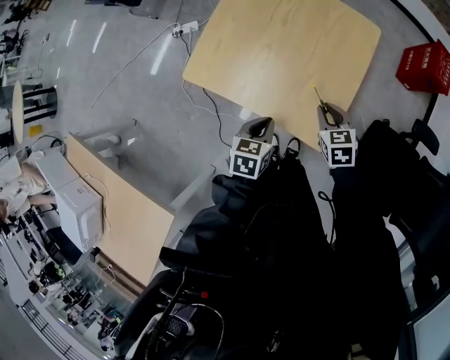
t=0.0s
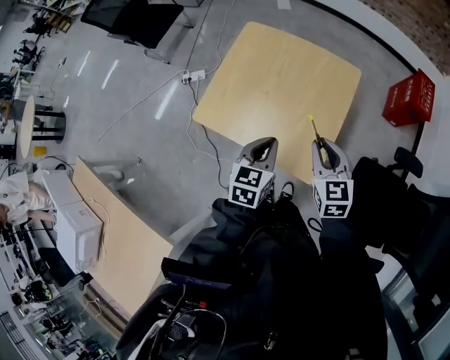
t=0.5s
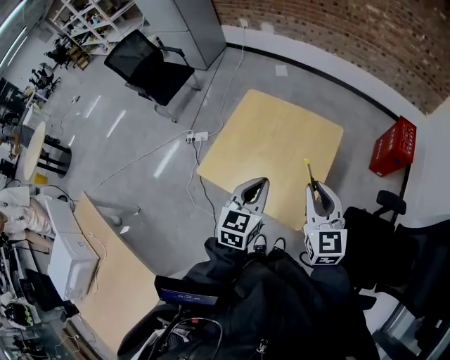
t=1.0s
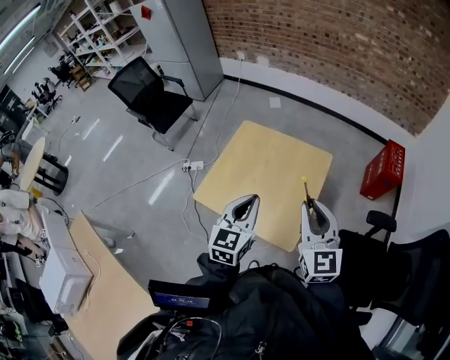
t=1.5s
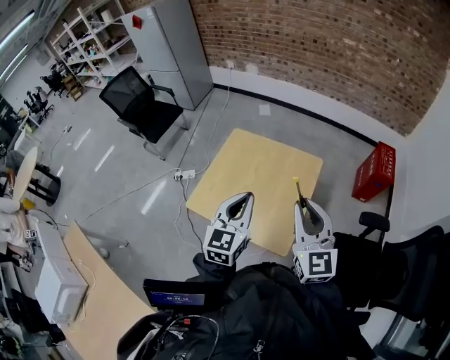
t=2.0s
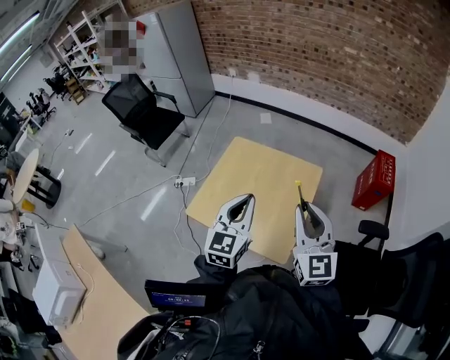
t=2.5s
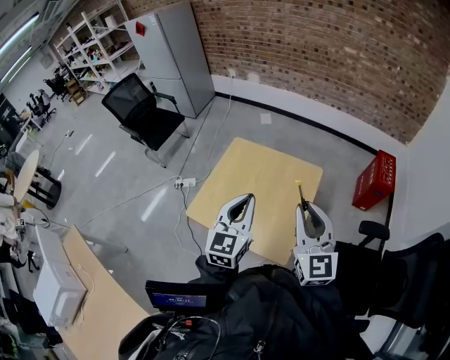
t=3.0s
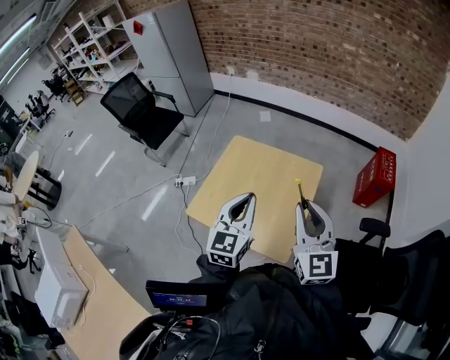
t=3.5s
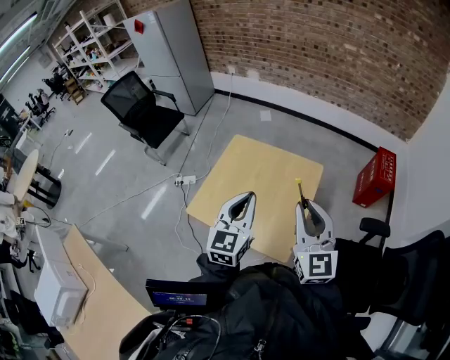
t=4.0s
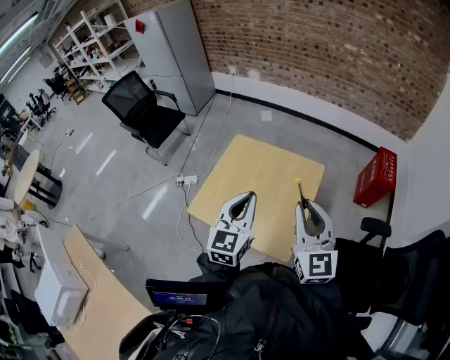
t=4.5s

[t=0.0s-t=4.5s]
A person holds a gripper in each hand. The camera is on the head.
t=0.0s to t=2.0s: The two grippers go some 35 cm upward. The left gripper tips its fingers upward by roughly 40 degrees, while the right gripper points its fingers roughly 50 degrees further upward.
t=2.0s to t=4.5s: There are only small adjustments of the grippers.

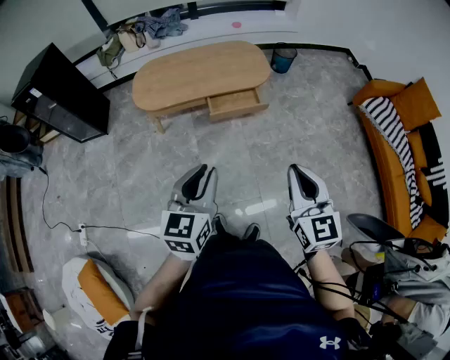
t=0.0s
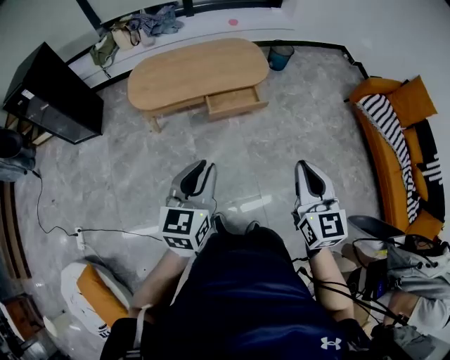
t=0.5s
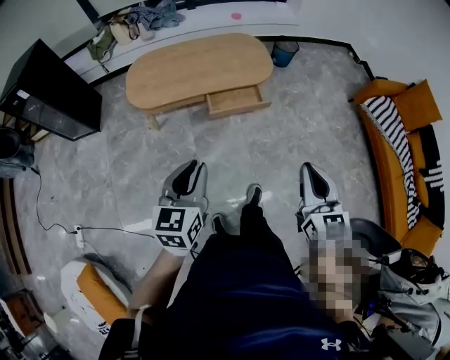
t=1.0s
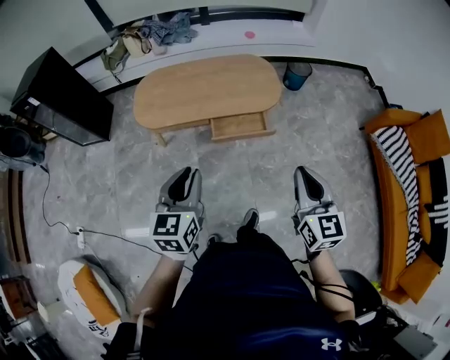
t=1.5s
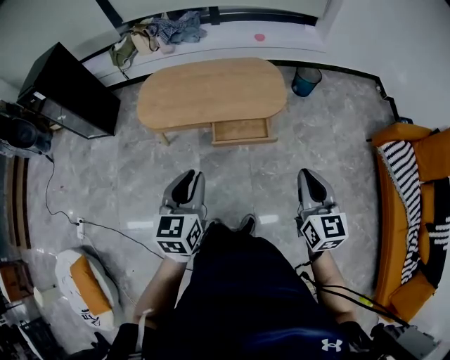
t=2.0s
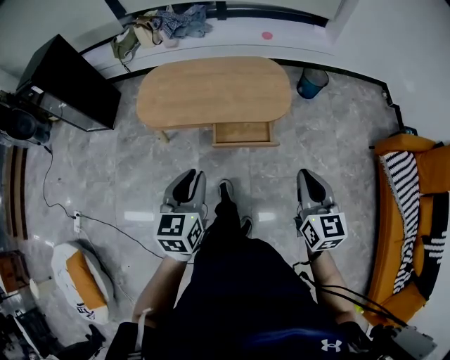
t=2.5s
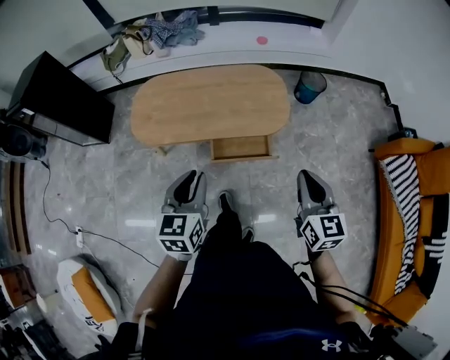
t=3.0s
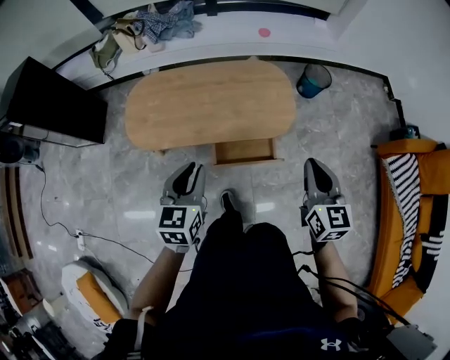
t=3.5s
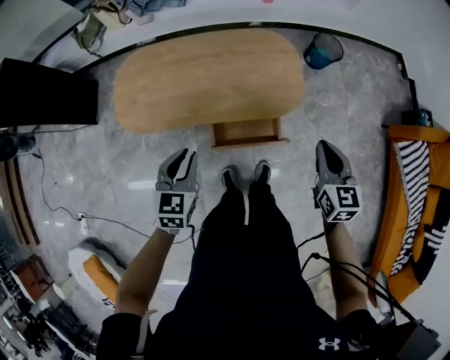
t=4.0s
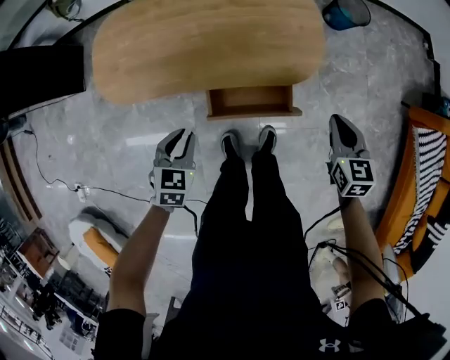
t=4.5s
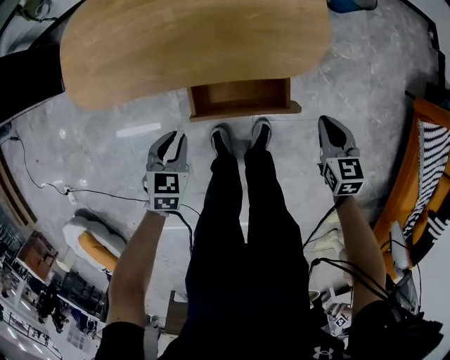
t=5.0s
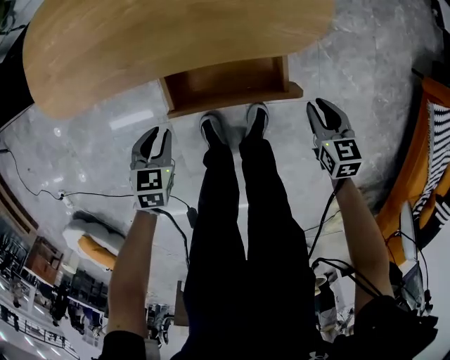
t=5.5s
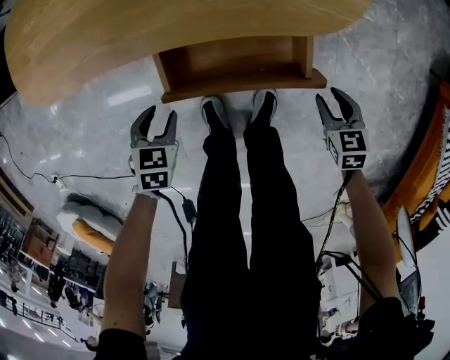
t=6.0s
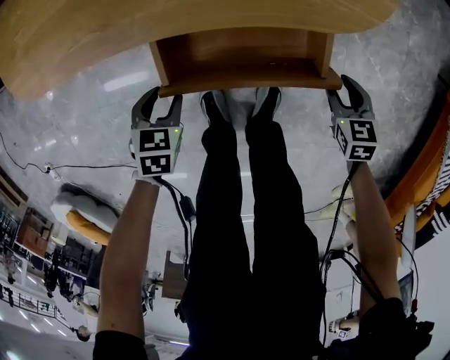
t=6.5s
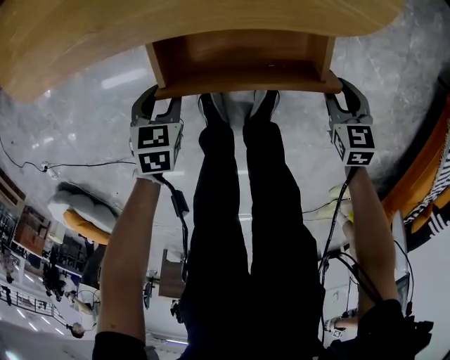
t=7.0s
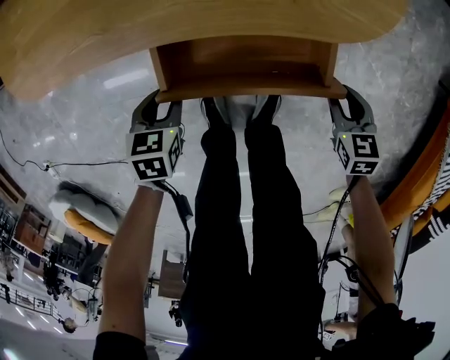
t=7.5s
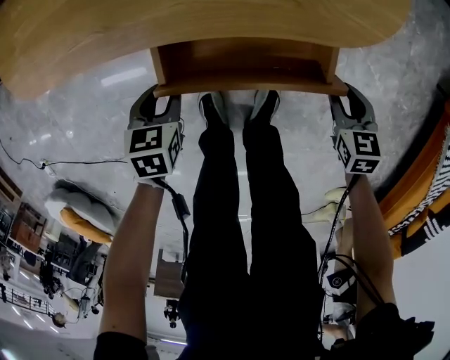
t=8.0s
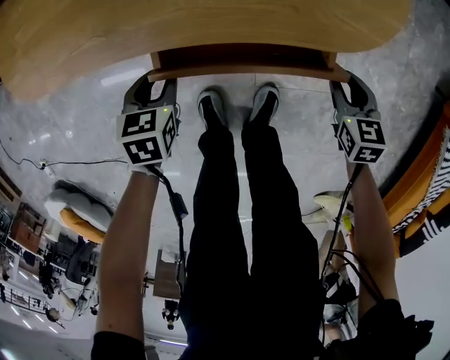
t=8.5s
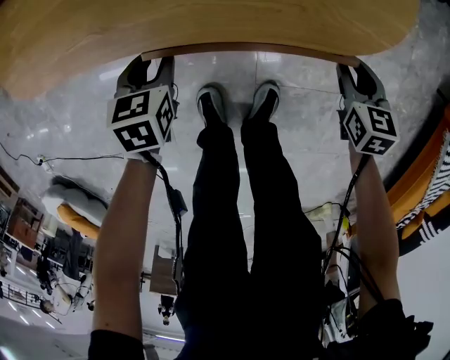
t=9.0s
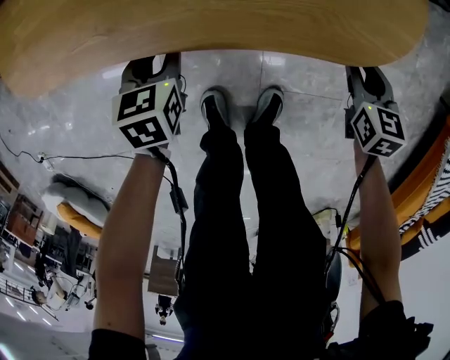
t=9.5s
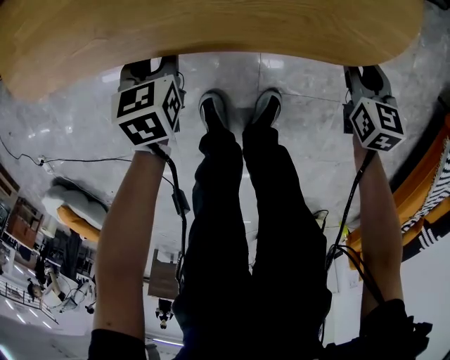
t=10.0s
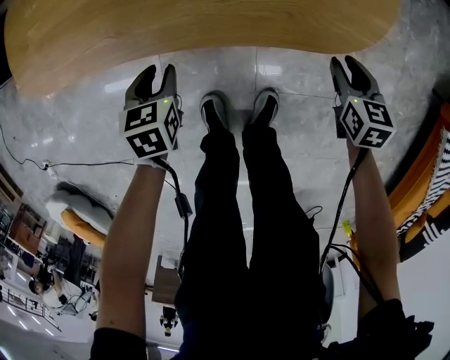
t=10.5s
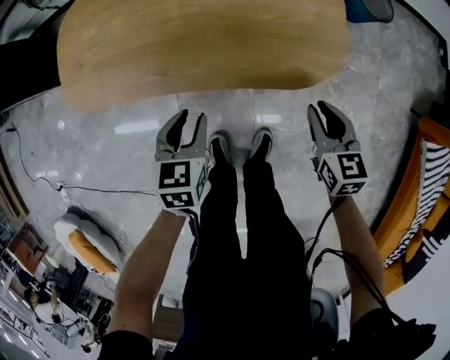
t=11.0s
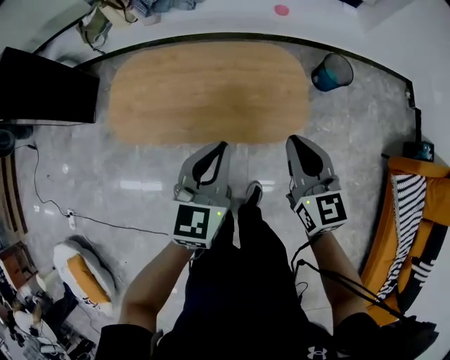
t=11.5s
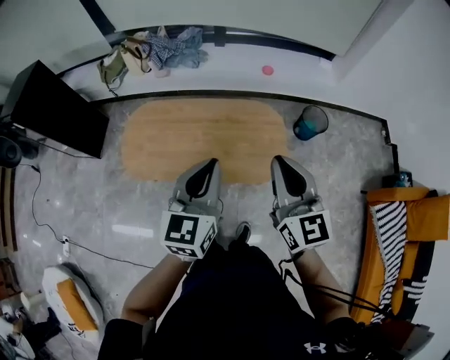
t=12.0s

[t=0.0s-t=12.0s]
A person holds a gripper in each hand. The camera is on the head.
t=0.0s to t=2.0s: Both grippers move forward, some 25 cm.
t=2.0s to t=4.0s: The two grippers go some 35 cm forward and downward.
t=4.0s to t=6.0s: Both grippers move downward, roughly 50 cm. The right gripper tilts its fingers about 30 degrees downward, and opens its fingers, while the left gripper angles its fingers downward, by approximately 30 degrees, and opens up.
t=6.0s to t=8.0s: There are only small adjustments of the grippers.
t=8.0s to t=10.0s: The grippers both shift forward by approximately 10 cm.
t=10.0s to t=12.0s: The two grippers go approximately 70 cm upward. The left gripper angles its fingers upward, by about 50 degrees, and closes, while the right gripper tilts its fingers approximately 50 degrees upward, and closes up.

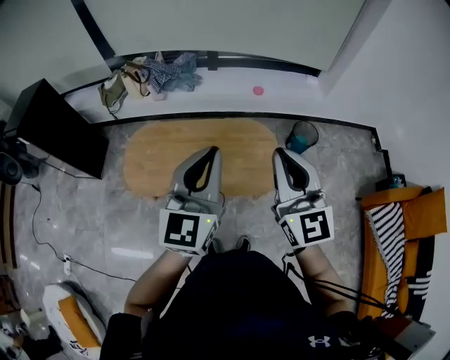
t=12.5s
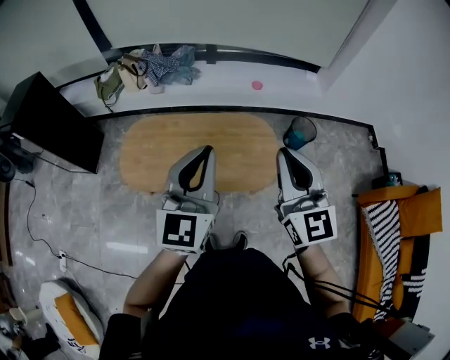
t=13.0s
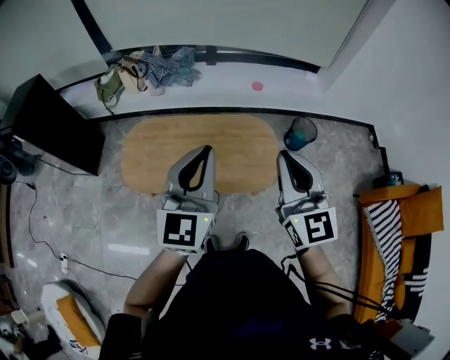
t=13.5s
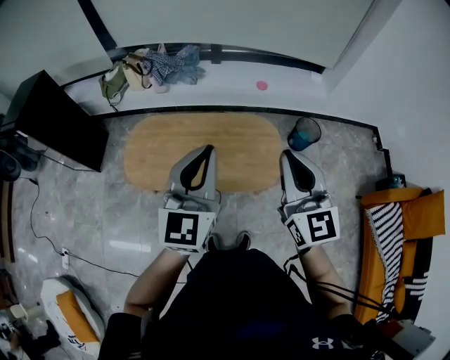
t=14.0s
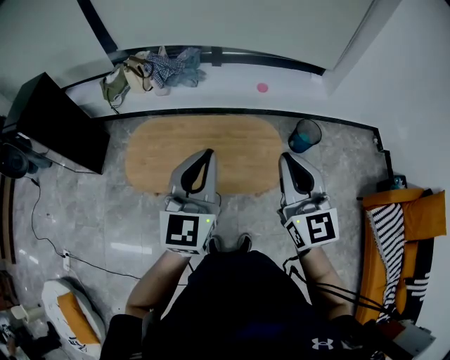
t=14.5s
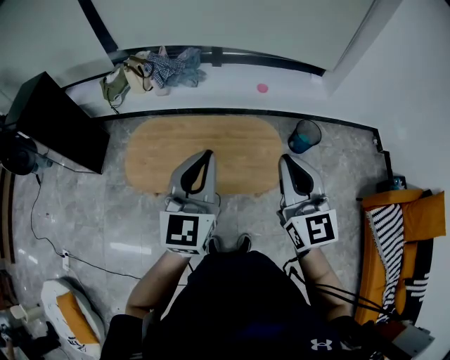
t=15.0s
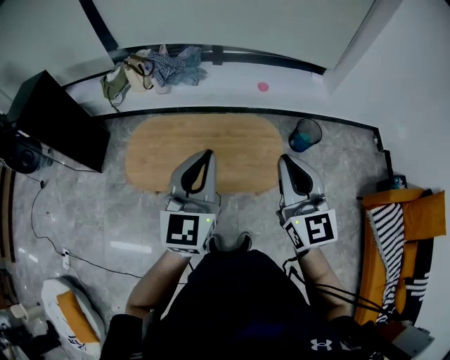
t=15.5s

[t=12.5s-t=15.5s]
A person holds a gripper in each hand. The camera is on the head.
t=12.5s to t=15.5s: The grippers move only a little.

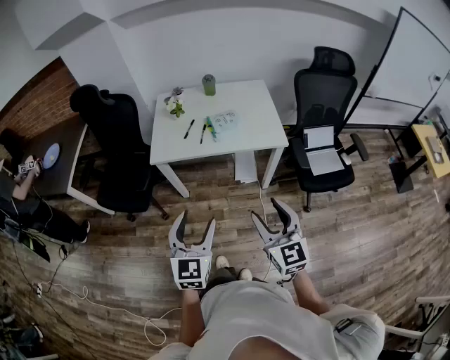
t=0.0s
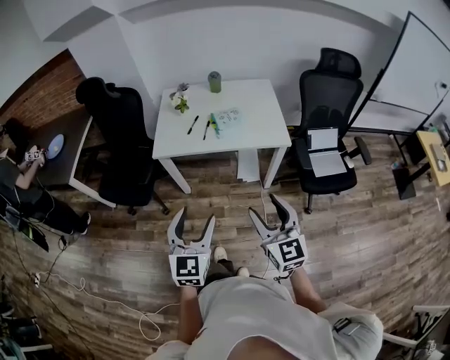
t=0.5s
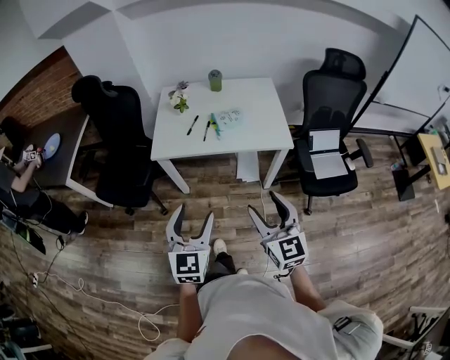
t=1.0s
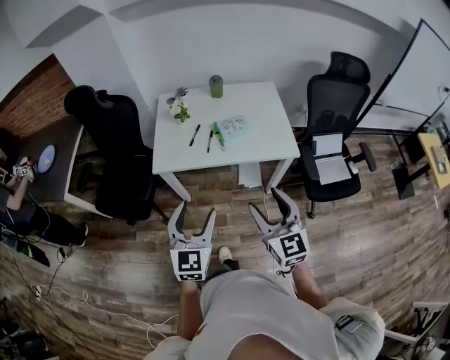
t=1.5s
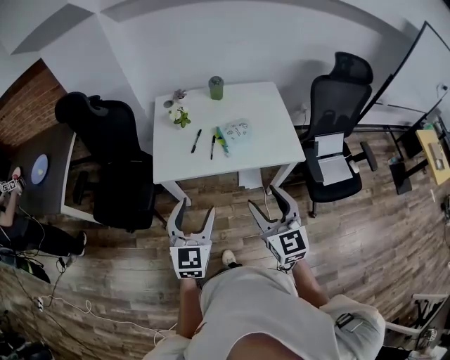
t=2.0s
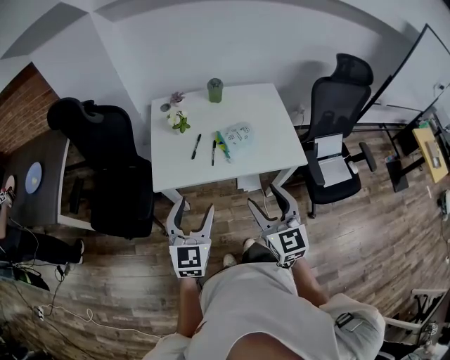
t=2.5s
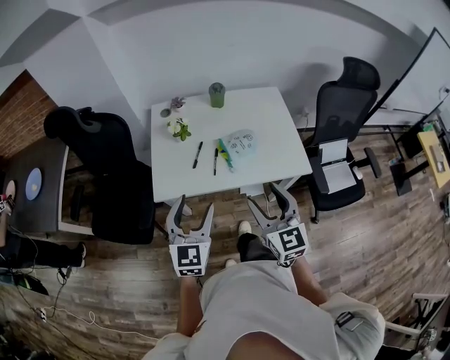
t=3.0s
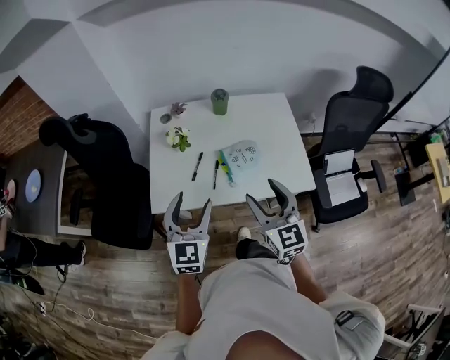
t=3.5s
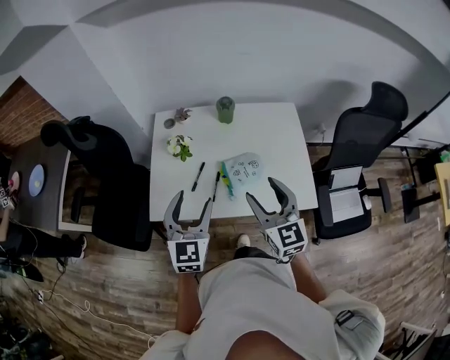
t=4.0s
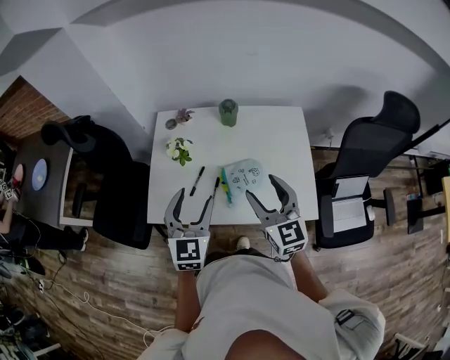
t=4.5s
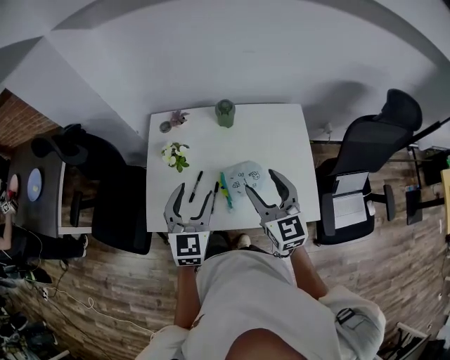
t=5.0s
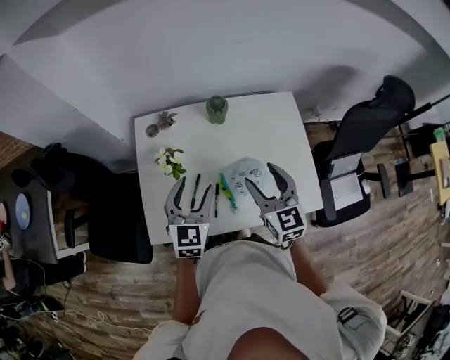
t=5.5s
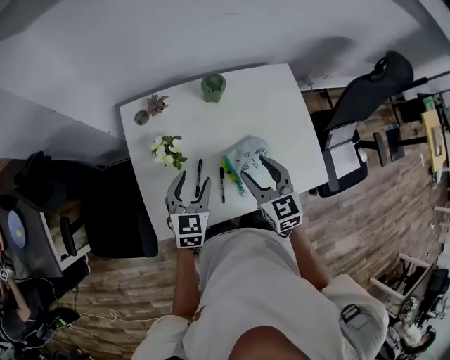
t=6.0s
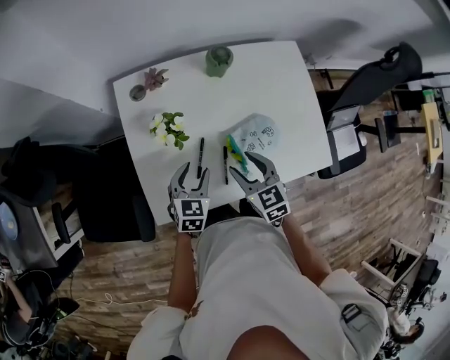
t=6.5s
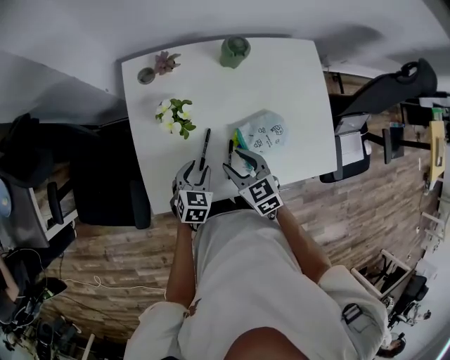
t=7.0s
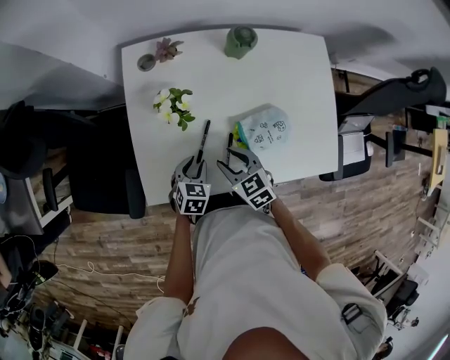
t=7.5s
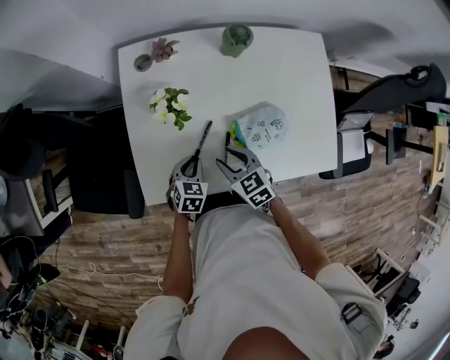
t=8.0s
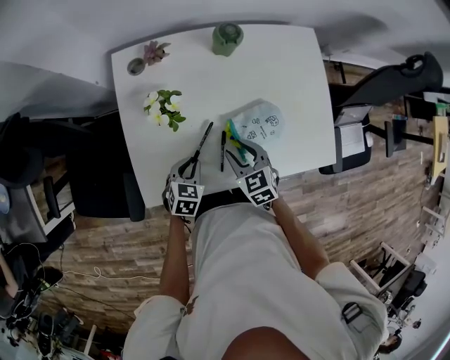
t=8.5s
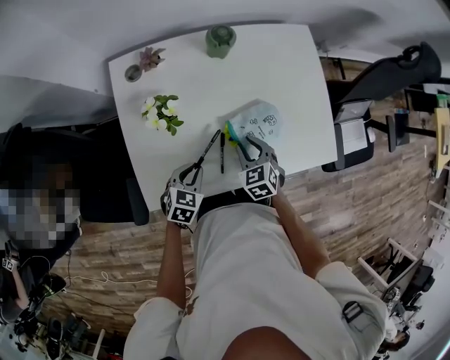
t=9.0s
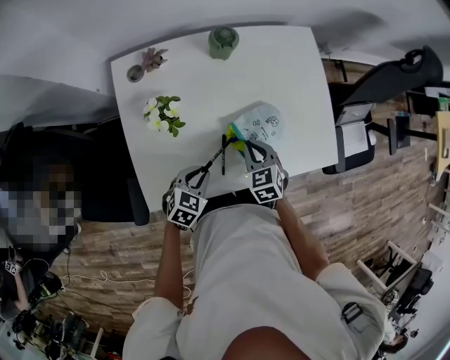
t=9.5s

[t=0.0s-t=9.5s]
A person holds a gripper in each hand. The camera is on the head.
t=0.0s to t=2.0s: The two grippers go roughly 20 cm forward.
t=2.0s to t=4.0s: The grippers both shift forward by approximately 25 cm.
t=4.0s to t=5.5s: The left gripper is displaced forward and downward by about 20 cm. Meanwhile the right gripper heads forward, covering some 15 cm.
t=5.5s to t=7.5s: The left gripper travels downward by approximately 30 cm, tilts its fingers approximately 30 degrees downward, and closes up, while the right gripper heads downward and to the left, covering approximately 30 cm, rotates some 40 degrees, and closes up.
t=7.5s to t=9.5s: The right gripper moves about 10 cm, changes its angle by about 20 degrees, and closes up; the left gripper moves some 5 cm, and swivels some 20 degrees.
